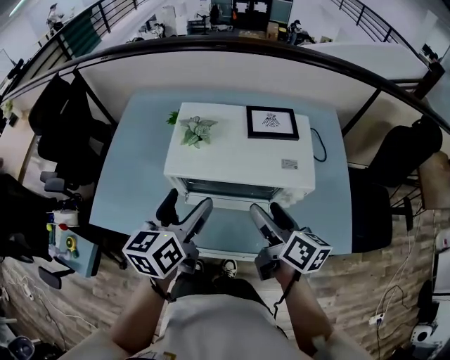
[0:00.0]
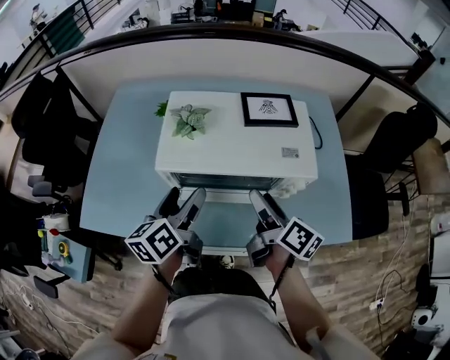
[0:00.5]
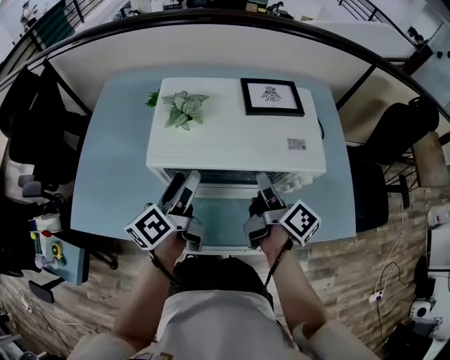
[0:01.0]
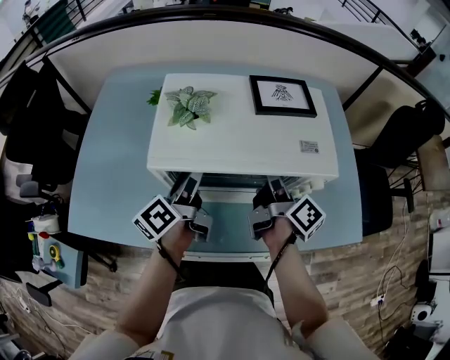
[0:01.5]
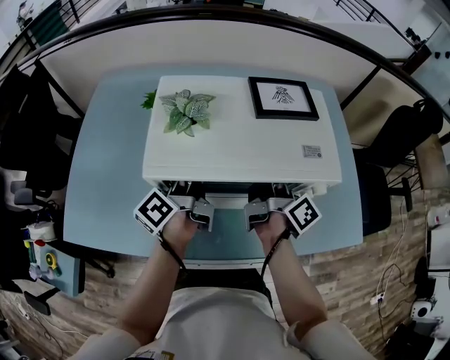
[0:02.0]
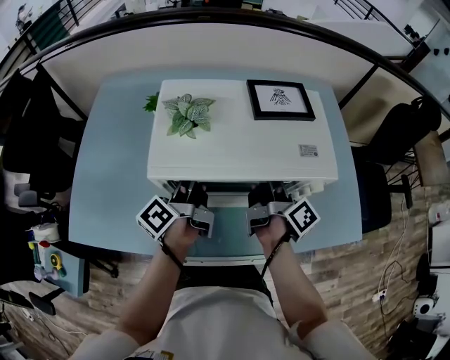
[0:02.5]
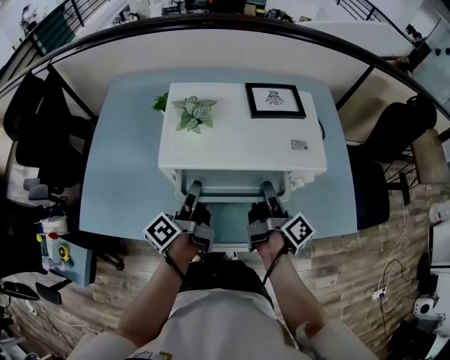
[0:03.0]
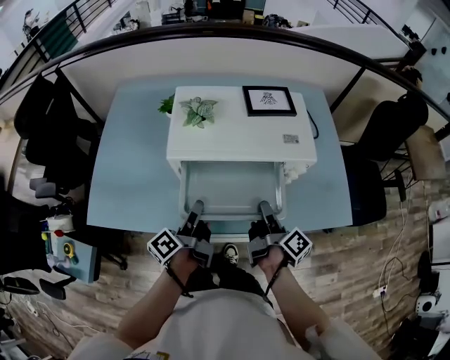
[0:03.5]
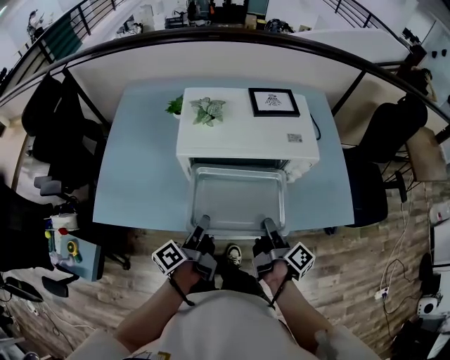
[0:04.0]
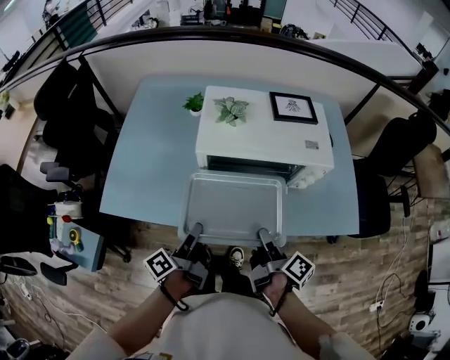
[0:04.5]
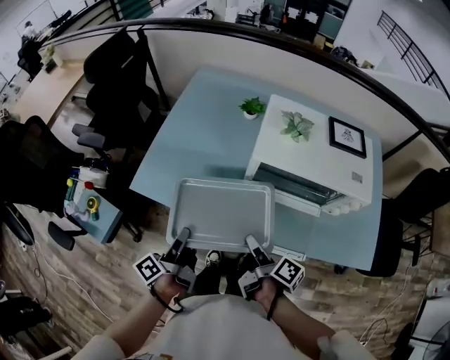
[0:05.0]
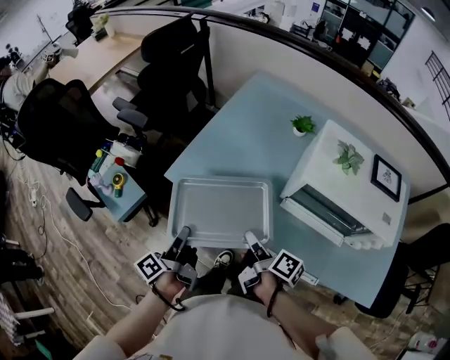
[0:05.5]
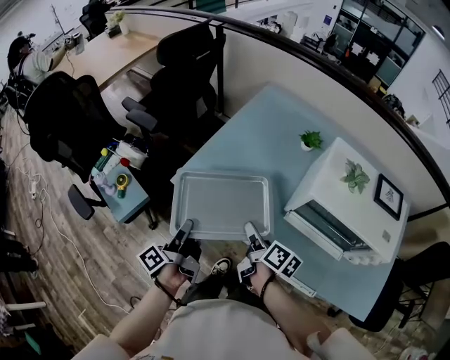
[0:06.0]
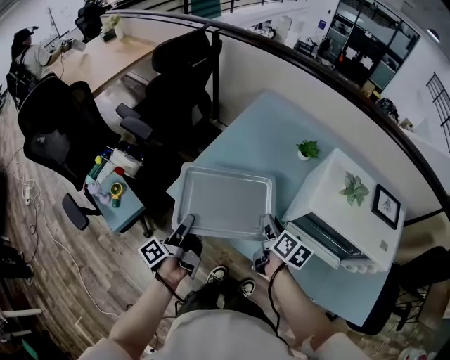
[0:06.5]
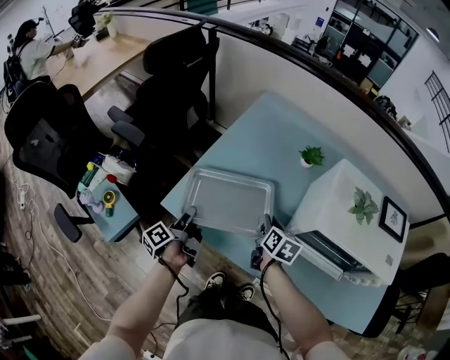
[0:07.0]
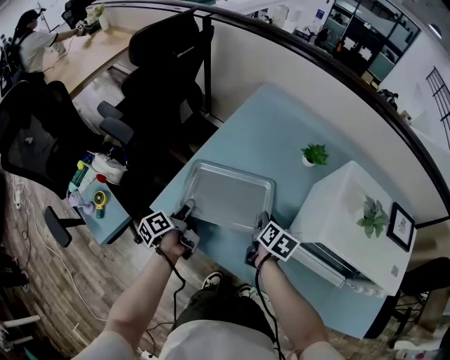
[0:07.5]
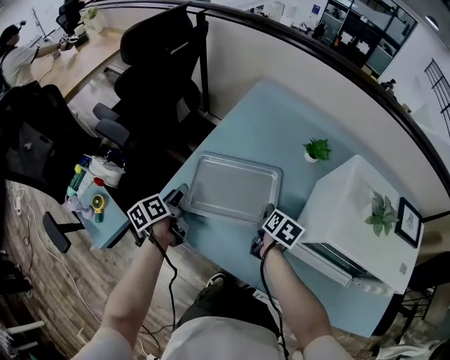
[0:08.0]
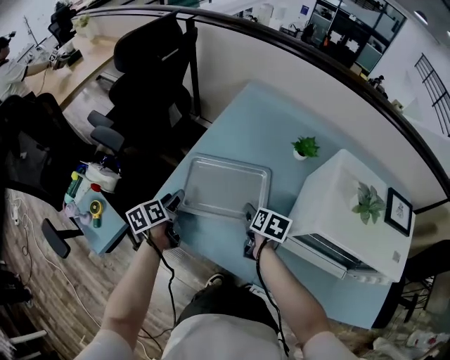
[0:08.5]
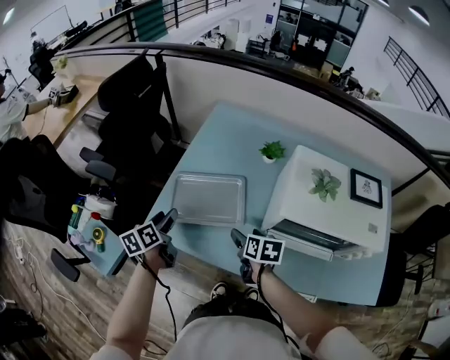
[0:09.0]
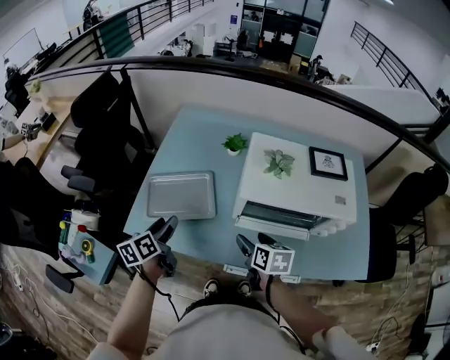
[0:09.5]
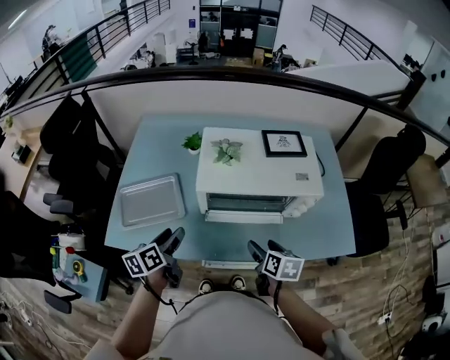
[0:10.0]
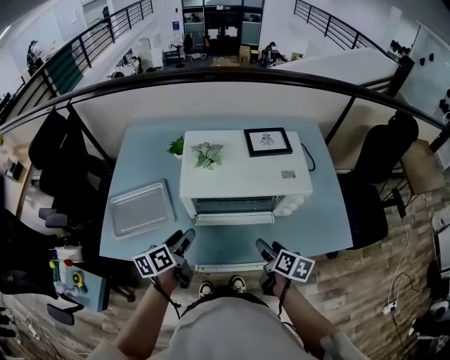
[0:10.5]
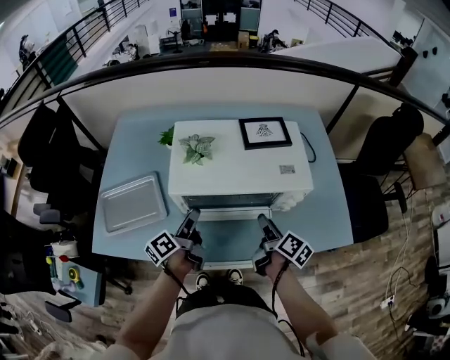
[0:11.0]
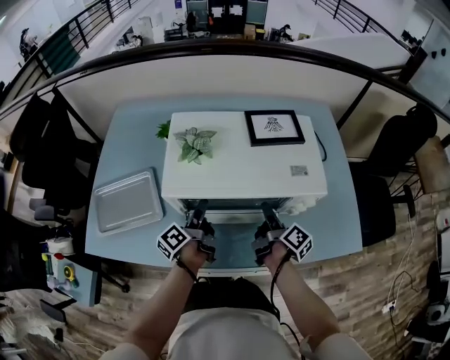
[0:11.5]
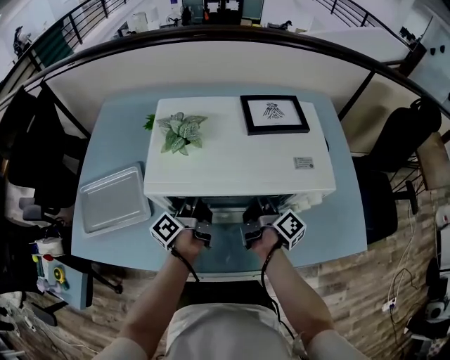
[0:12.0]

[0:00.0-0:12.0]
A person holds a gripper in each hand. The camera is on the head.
0:00.0 to 0:02.0: The left gripper shifts approximately 20 cm downward and forward, twists roughly 50 degrees counterclockwise, seen from behind, and closes its fingers. The right gripper is displaced forward and downward by roughly 15 cm, swivels roughly 40 degrees, and closes.
0:02.0 to 0:04.0: The two grippers go about 25 cm backward. The right gripper changes its angle by approximately 20 degrees.
0:04.0 to 0:06.0: The left gripper moves some 35 cm, and swivels about 40 degrees; the right gripper shifts by some 35 cm, and rotates approximately 60 degrees.
0:06.0 to 0:08.0: Both grippers travel together forward and downward, roughly 25 cm. The right gripper swivels some 40 degrees. The left gripper turns by about 40 degrees, and opens.
0:08.0 to 0:10.0: The right gripper moves some 40 cm, and opens up; the left gripper ends up approximately 40 cm from where it was, and swivels roughly 40 degrees.
0:10.0 to 0:12.0: The left gripper heads forward, to the right and downward, covering approximately 25 cm, and swivels about 50 degrees. Meanwhile the right gripper travels forward by some 20 cm, angles its fingers upward, by some 40 degrees, and closes up.

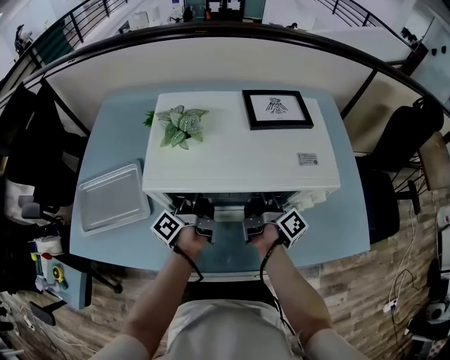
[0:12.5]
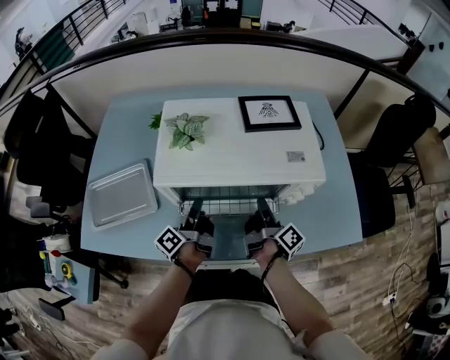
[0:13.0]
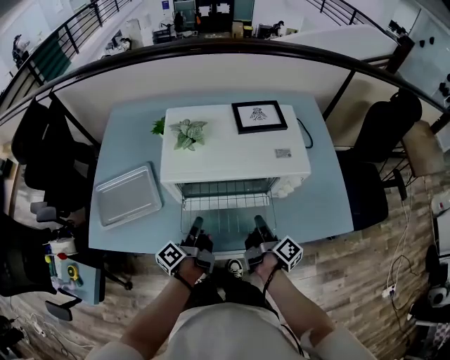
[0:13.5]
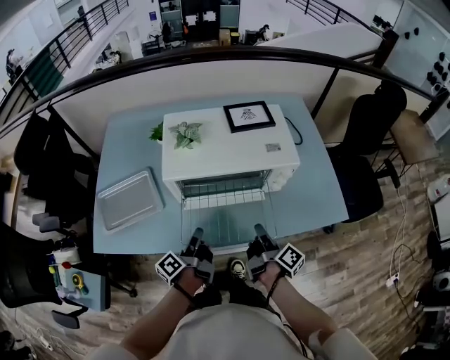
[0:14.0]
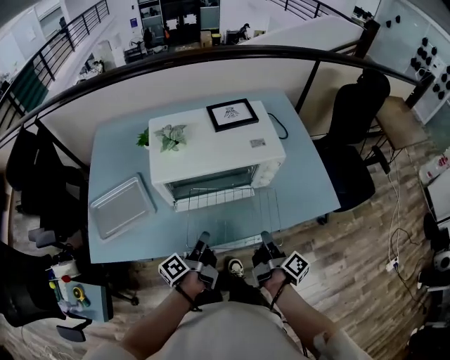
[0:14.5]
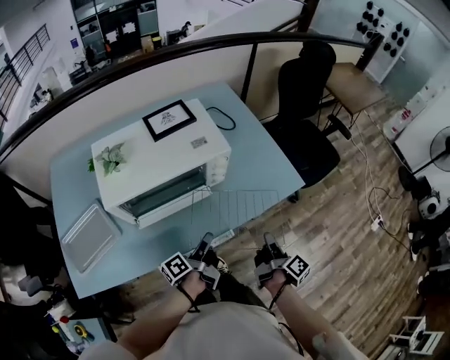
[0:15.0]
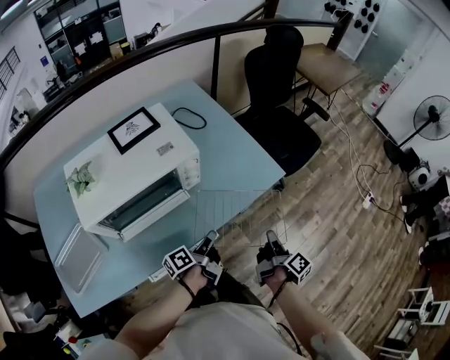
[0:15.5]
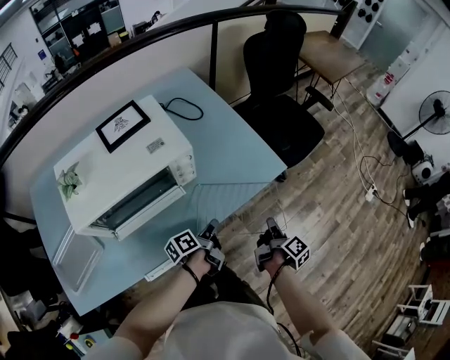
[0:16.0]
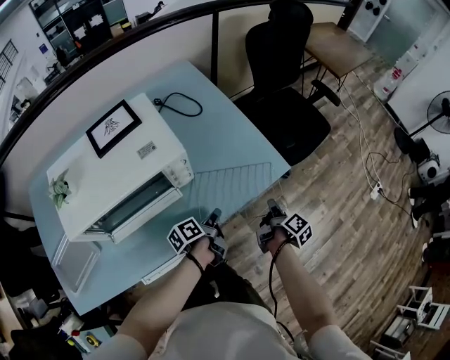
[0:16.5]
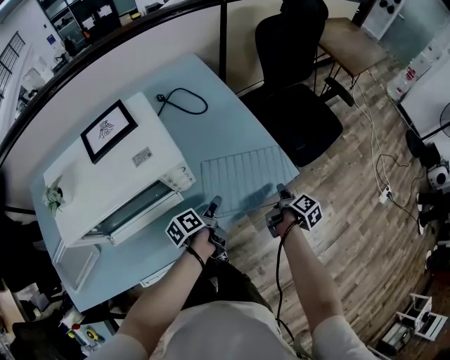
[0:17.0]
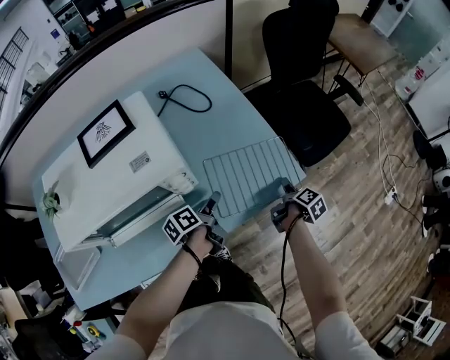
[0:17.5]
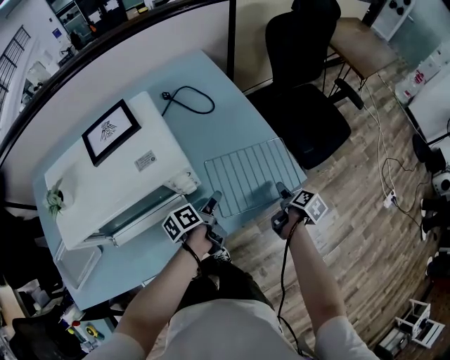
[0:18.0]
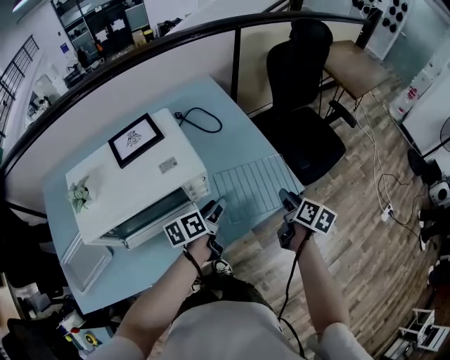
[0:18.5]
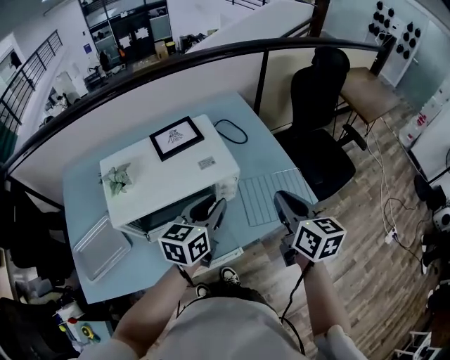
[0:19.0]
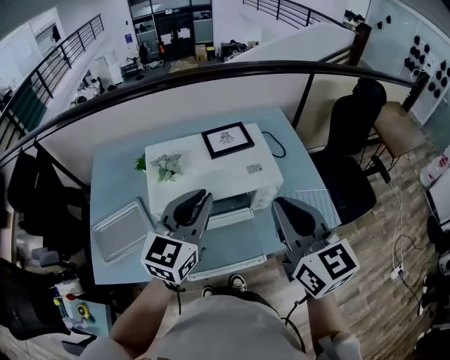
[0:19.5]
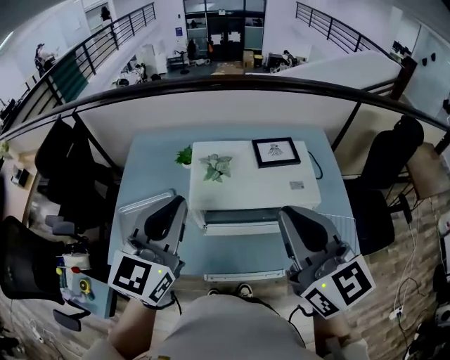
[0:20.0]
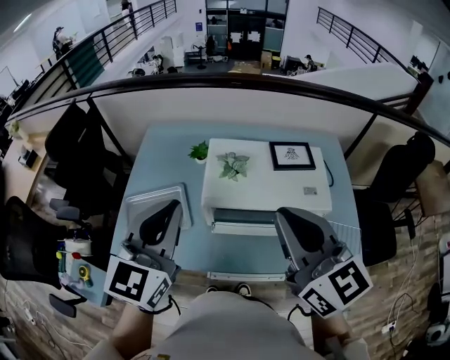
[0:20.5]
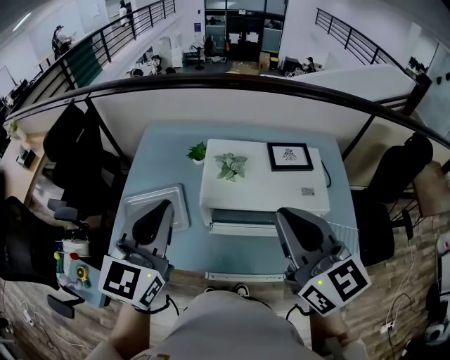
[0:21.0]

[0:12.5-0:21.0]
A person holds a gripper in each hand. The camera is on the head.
0:12.5 to 0:14.5: Both grippers travel together backward, about 25 cm. The left gripper rotates some 30 degrees.
0:14.5 to 0:16.5: The right gripper moves some 30 cm, and rotates about 30 degrees, while the left gripper ends up some 30 cm from where it was, and turns by approximately 40 degrees.
0:16.5 to 0:19.0: Both grippers move upward and to the left, about 30 cm. The right gripper twists roughly 60 degrees counterclockwise, seen from behind, and opens, then closes once more, while the left gripper rolls clockwise, seen from behind, by roughly 60 degrees.
0:19.0 to 0:21.0: The right gripper shifts by about 35 cm, and turns by about 50 degrees, while the left gripper changes place by about 40 cm, and turns by about 50 degrees.

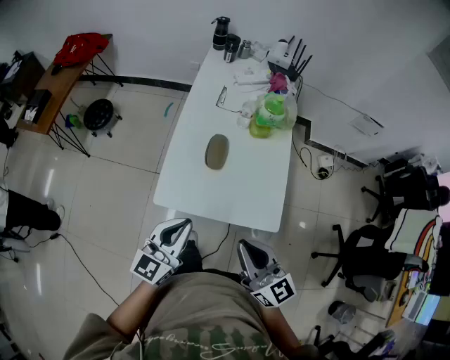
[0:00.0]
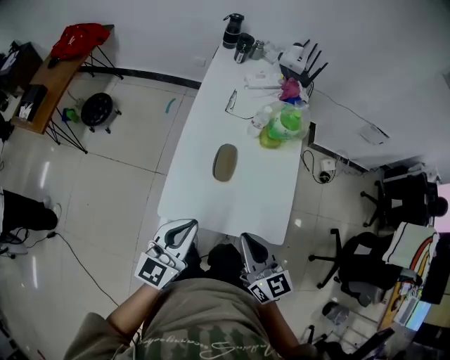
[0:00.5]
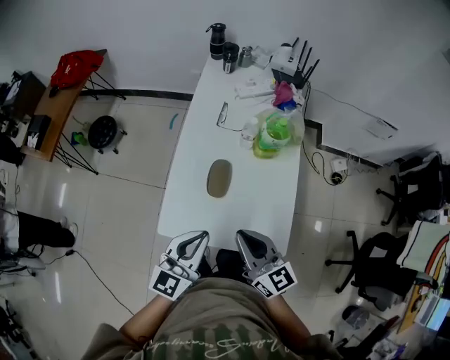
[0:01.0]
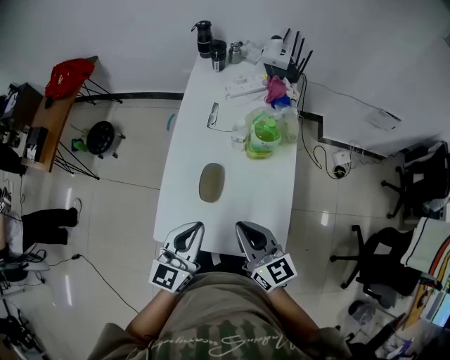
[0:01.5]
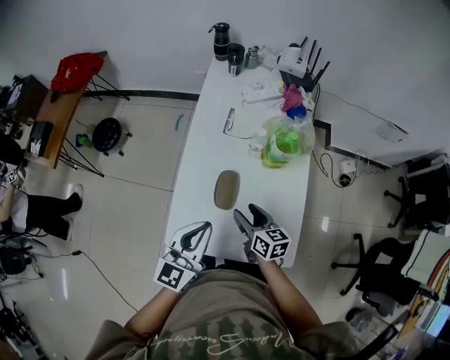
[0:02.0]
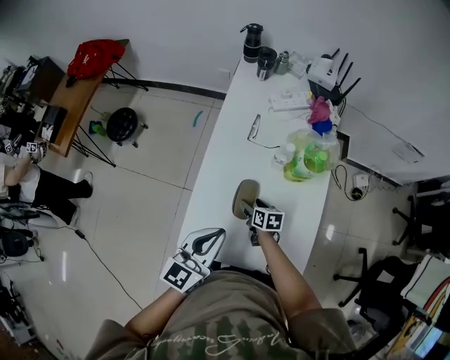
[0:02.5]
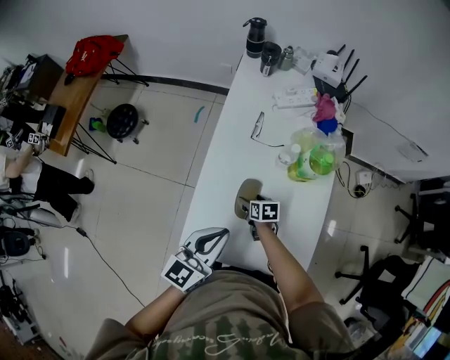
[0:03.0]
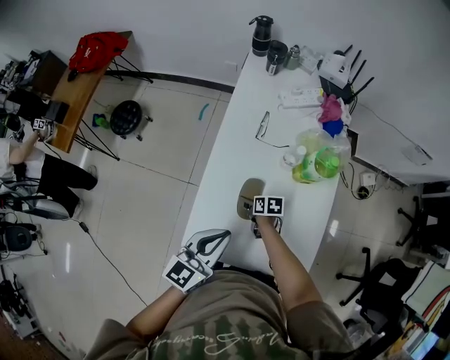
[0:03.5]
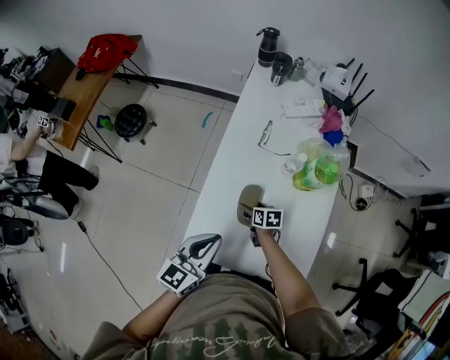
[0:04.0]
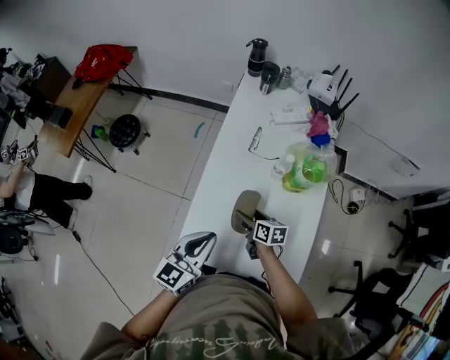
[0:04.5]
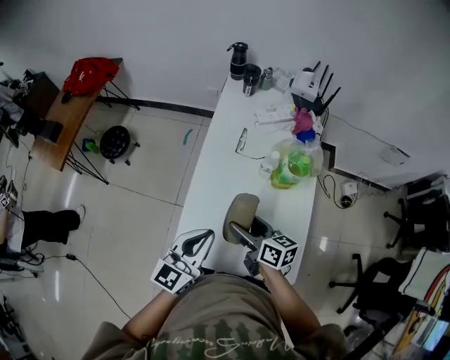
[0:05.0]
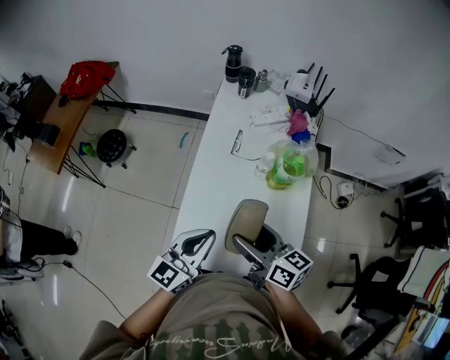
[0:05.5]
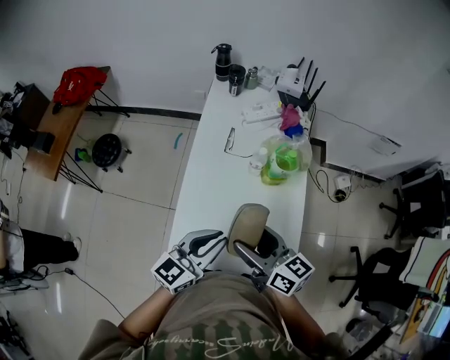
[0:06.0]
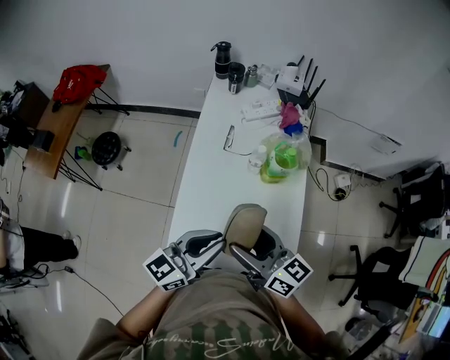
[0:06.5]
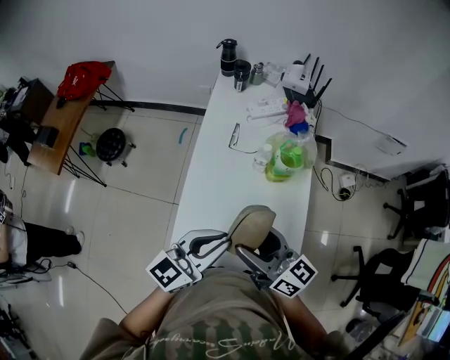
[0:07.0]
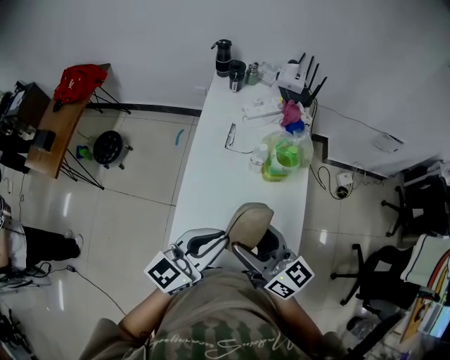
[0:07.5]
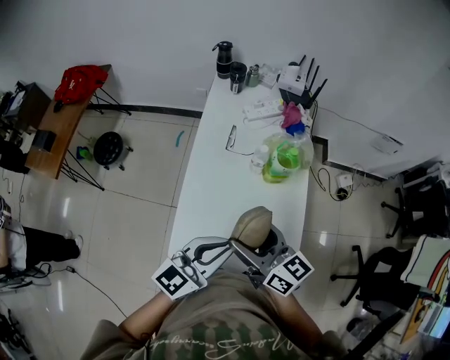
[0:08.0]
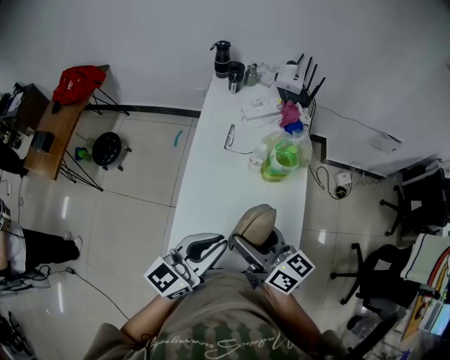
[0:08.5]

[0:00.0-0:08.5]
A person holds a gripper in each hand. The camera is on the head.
0:00.0 to 0:02.0: The right gripper heads forward and downward, covering some 35 cm, turns by some 40 degrees, and opens, while the left gripper heads forward, covering about 20 cm.
0:02.0 to 0:04.0: The left gripper moves to the left, about 5 cm. The right gripper heads downward, forward and to the left, covering some 20 cm, and changes its angle by about 30 degrees.
0:04.0 to 0:06.5: The right gripper shifts roughly 35 cm upward, and points its fingers about 50 degrees further upward. Meanwhile the left gripper travels upward and to the right by approximately 10 cm, and turns by approximately 30 degrees.
0:06.5 to 0:08.5: There are only small adjustments of the grippers.
